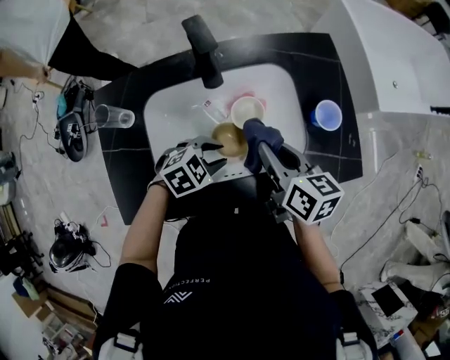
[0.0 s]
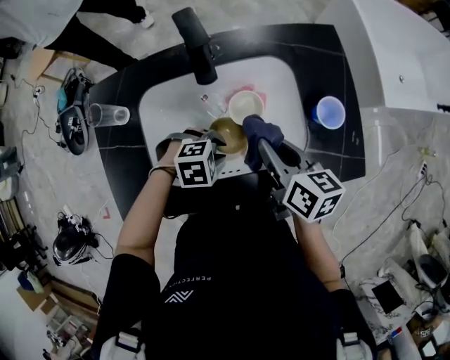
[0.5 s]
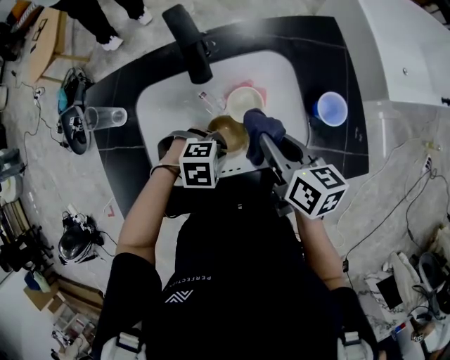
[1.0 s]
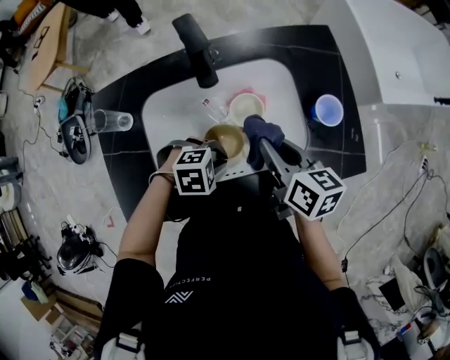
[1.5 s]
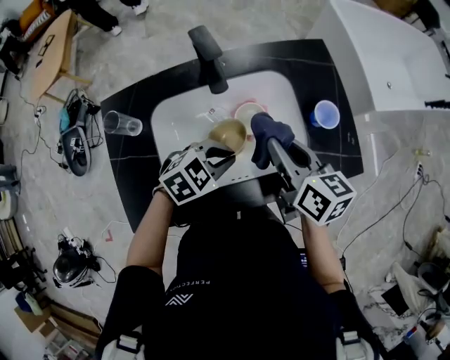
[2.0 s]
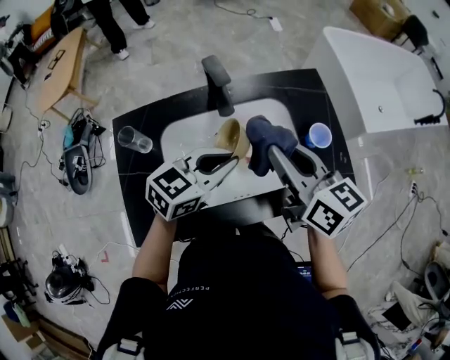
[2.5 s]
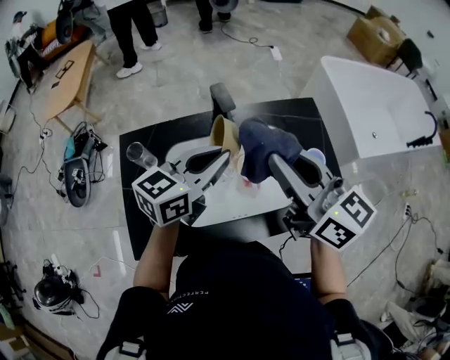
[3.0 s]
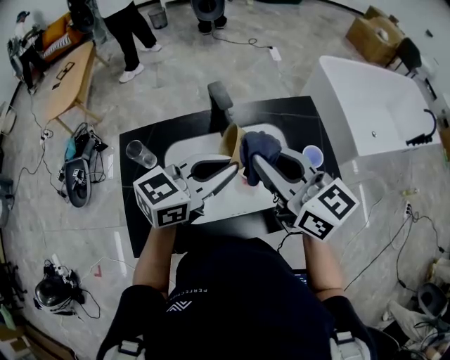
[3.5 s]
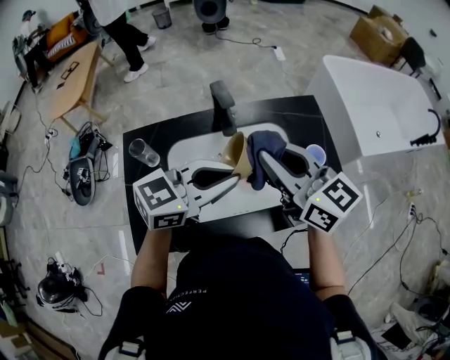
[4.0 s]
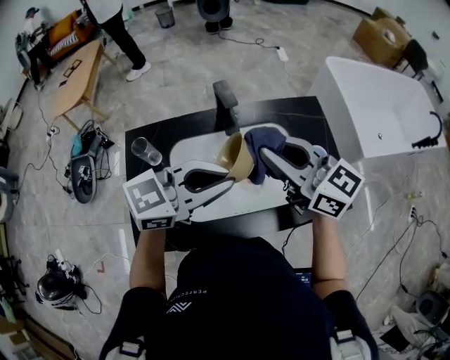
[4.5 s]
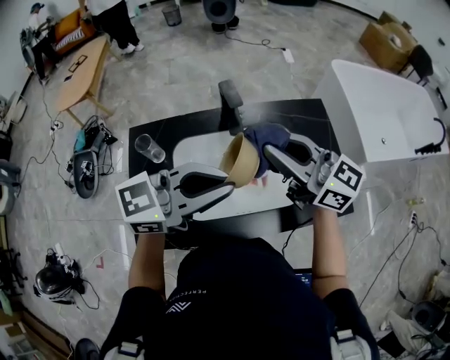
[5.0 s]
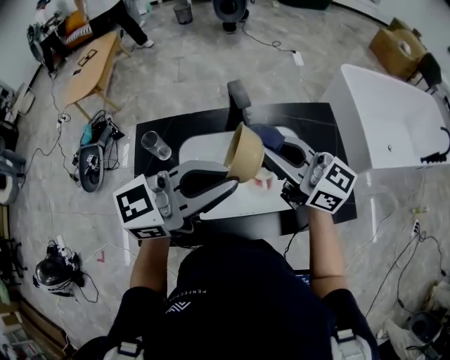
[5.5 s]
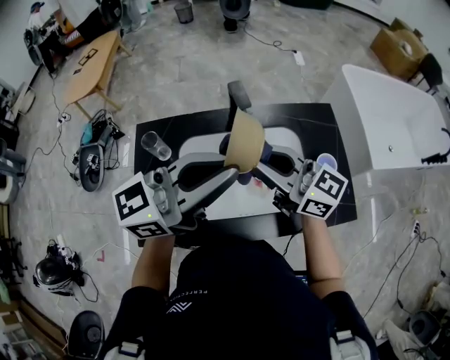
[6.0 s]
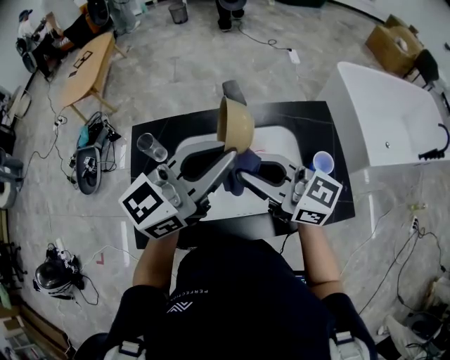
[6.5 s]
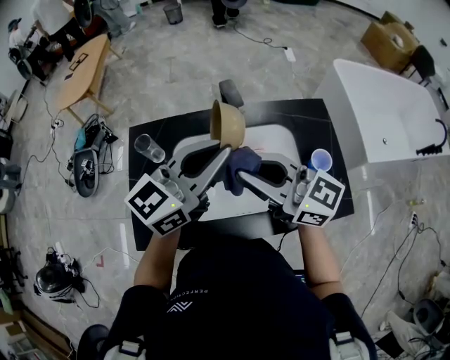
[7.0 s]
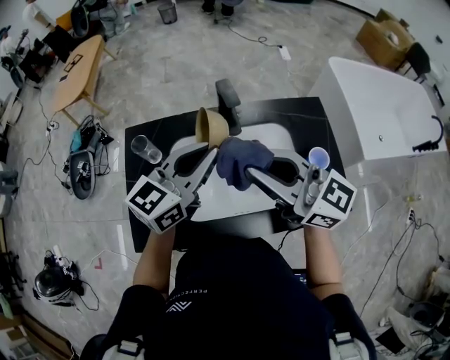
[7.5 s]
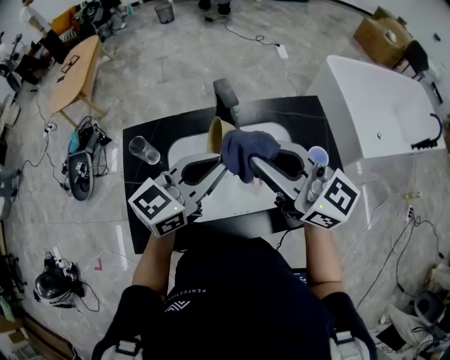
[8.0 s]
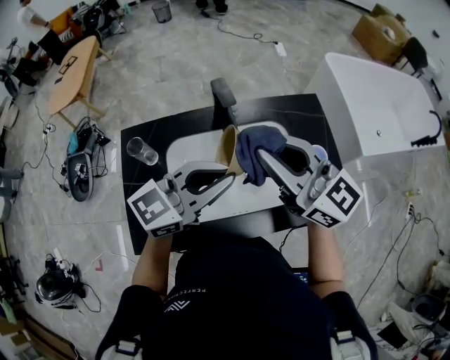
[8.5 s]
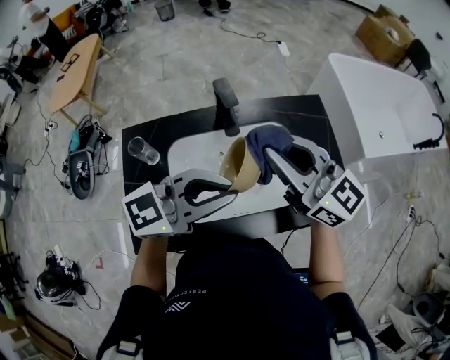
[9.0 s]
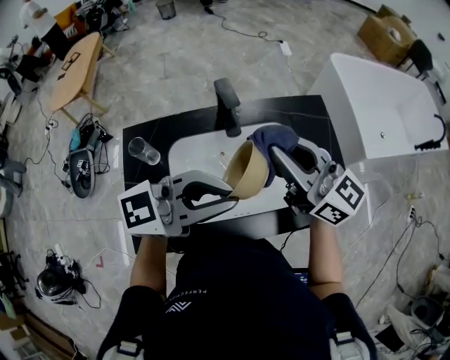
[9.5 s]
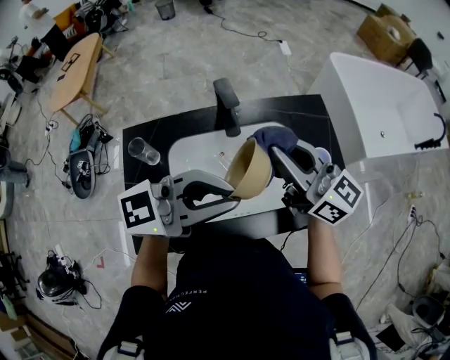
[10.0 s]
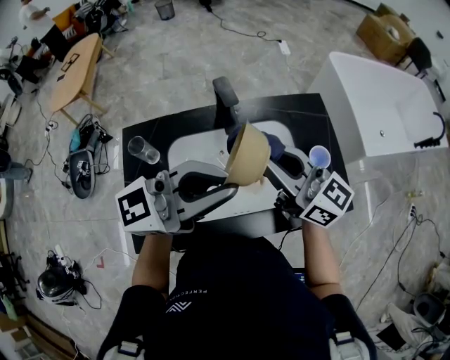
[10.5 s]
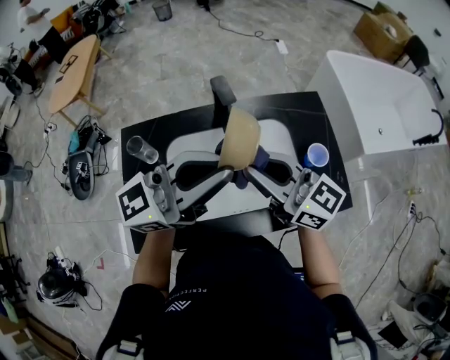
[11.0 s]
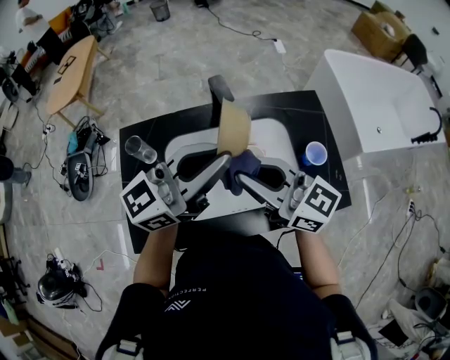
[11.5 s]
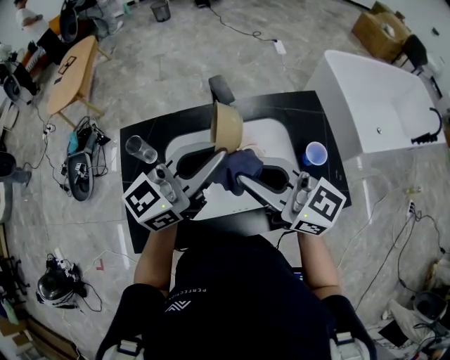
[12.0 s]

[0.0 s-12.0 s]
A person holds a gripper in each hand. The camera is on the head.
0.0 to 2.0 s: The left gripper moves upward, about 5 cm, and closes up.
2.0 to 4.0 s: Both grippers travel together upward, approximately 20 cm. The left gripper points its fingers roughly 40 degrees further upward, while the right gripper rotates roughly 30 degrees.
4.0 to 6.0 s: The right gripper moves about 5 cm, and rotates about 20 degrees. Meanwhile the left gripper moves upward, some 10 cm, and changes its angle by approximately 20 degrees.
6.0 to 8.0 s: The right gripper travels upward by approximately 5 cm. The left gripper is displaced downward by approximately 10 cm.
8.0 to 10.0 s: The right gripper ends up about 5 cm from where it was; the left gripper ends up roughly 10 cm from where it was, and turns by about 30 degrees.
10.0 to 12.0 s: The left gripper ends up approximately 10 cm from where it was, and rotates about 30 degrees. Meanwhile the right gripper changes place by about 10 cm.

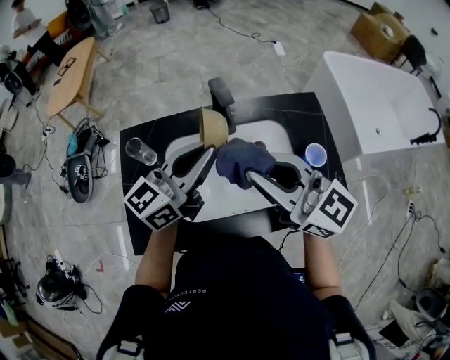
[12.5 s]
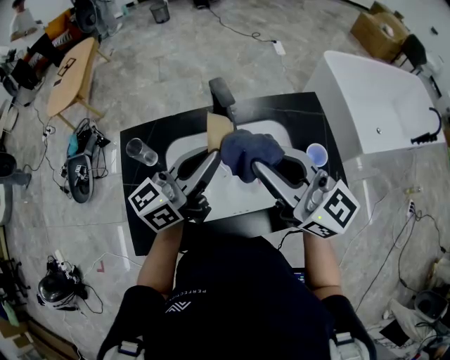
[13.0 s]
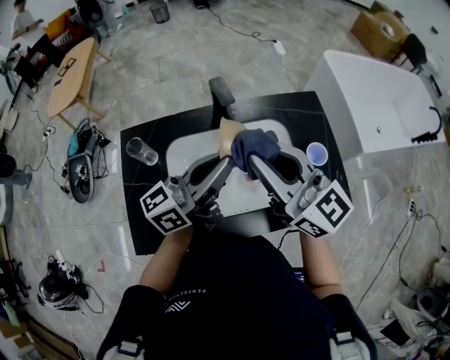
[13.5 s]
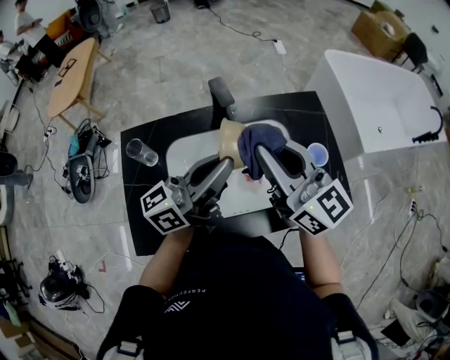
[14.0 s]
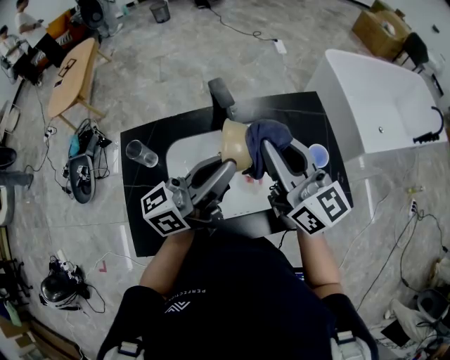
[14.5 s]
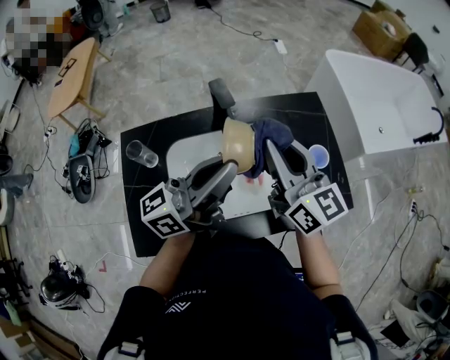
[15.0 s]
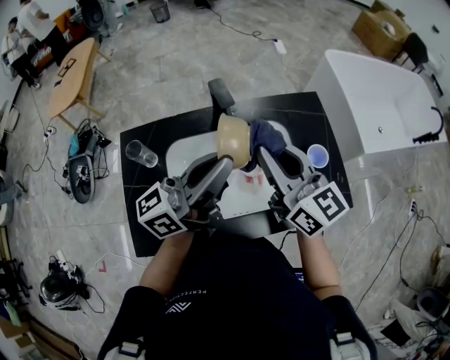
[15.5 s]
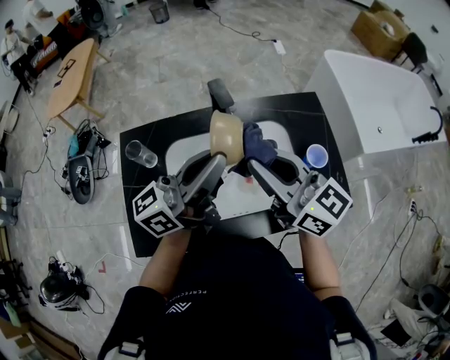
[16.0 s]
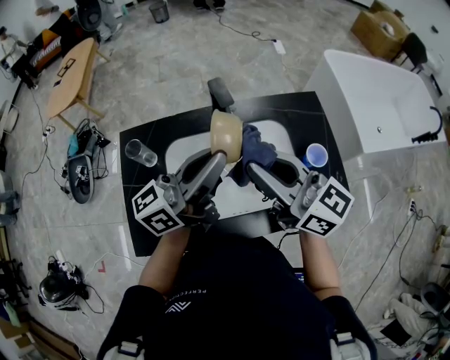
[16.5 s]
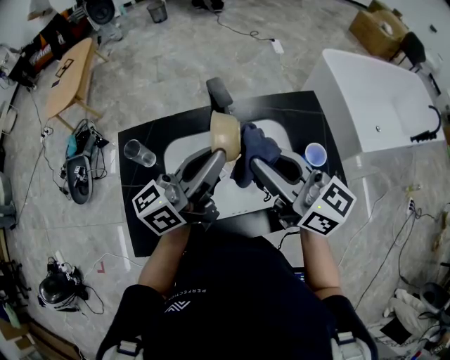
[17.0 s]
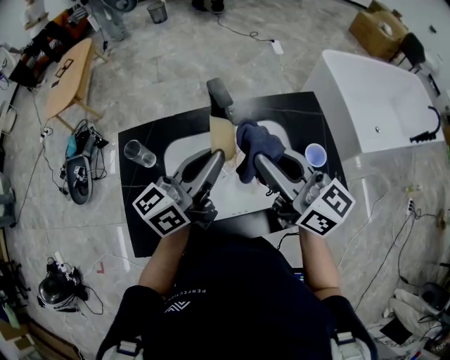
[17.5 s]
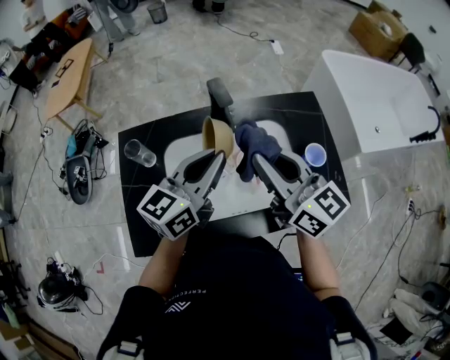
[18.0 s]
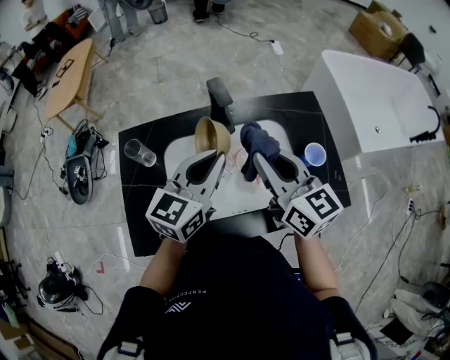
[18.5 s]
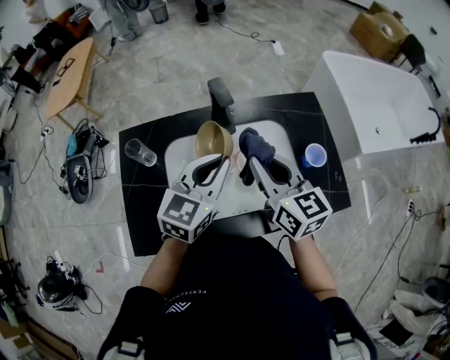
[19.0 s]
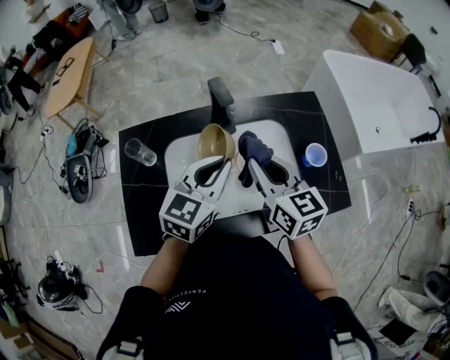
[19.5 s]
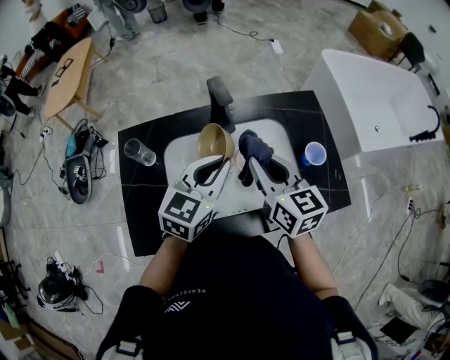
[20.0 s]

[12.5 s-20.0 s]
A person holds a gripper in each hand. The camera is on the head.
12.5 to 14.5 s: The right gripper goes about 5 cm forward, and swivels some 30 degrees. Meanwhile the left gripper changes its angle by approximately 30 degrees.
14.5 to 16.5 s: The right gripper travels backward by roughly 5 cm, and swivels roughly 20 degrees.
16.5 to 18.0 s: The left gripper goes some 5 cm downward, and turns by some 30 degrees.
18.0 to 20.0 s: The right gripper travels downward by some 10 cm, and swivels roughly 20 degrees. The left gripper shifts roughly 5 cm downward, and changes its angle by roughly 20 degrees.

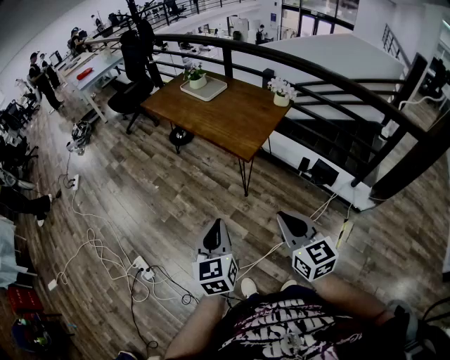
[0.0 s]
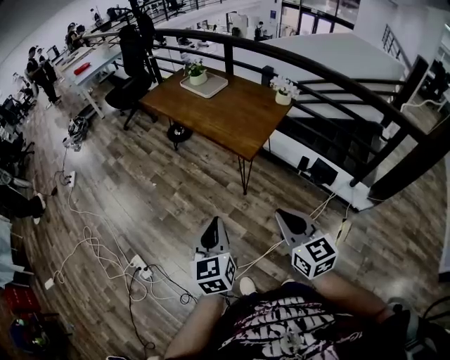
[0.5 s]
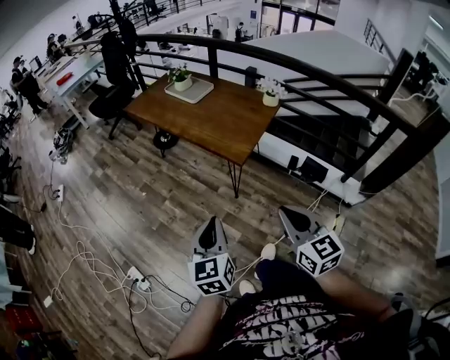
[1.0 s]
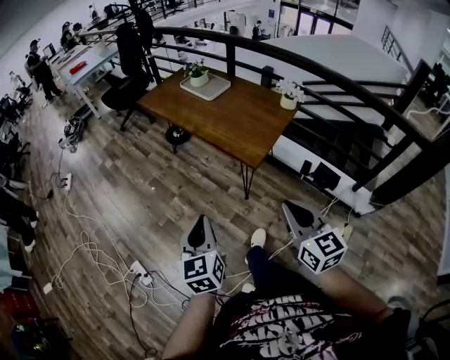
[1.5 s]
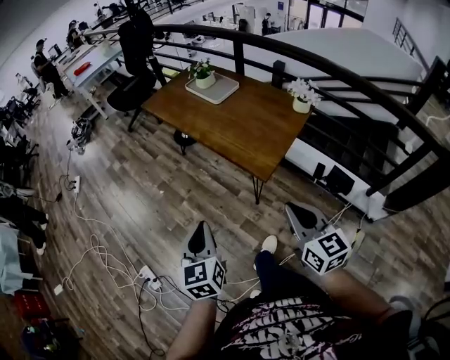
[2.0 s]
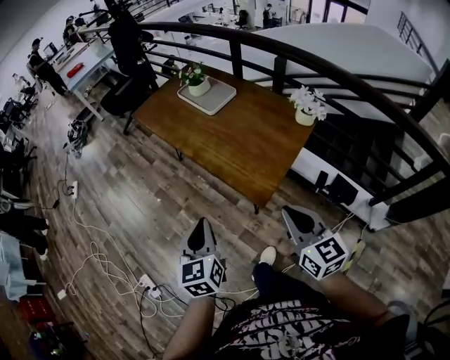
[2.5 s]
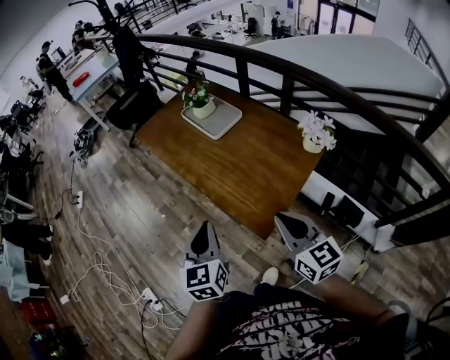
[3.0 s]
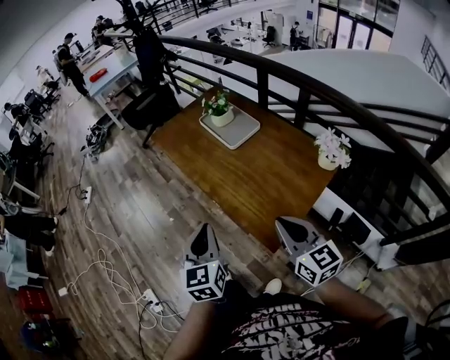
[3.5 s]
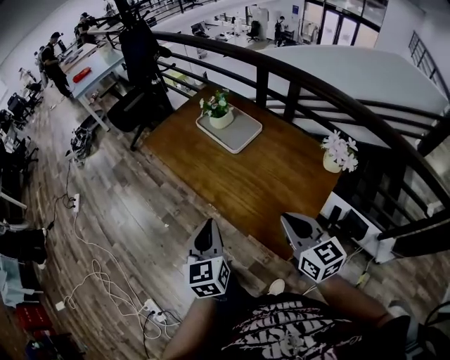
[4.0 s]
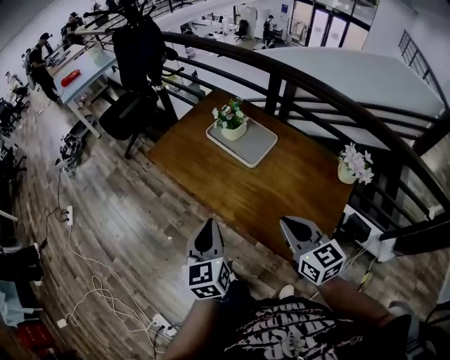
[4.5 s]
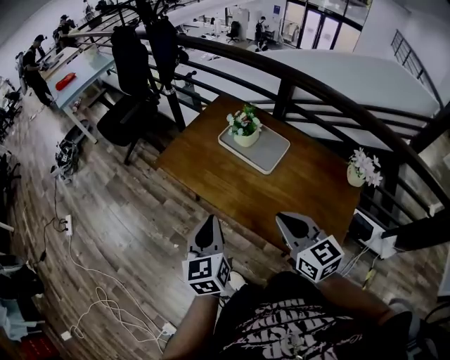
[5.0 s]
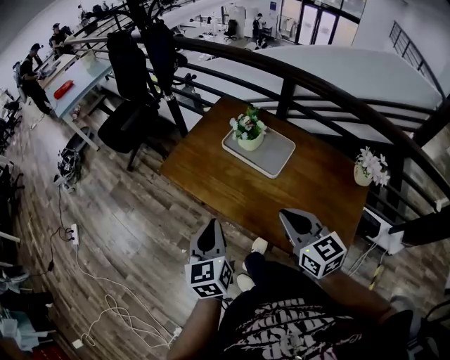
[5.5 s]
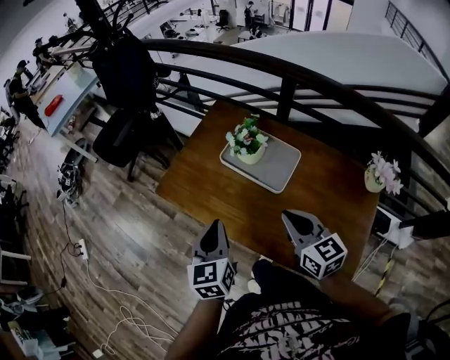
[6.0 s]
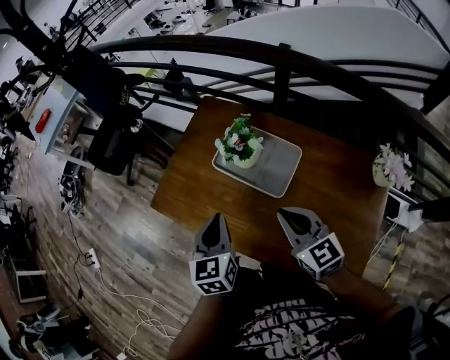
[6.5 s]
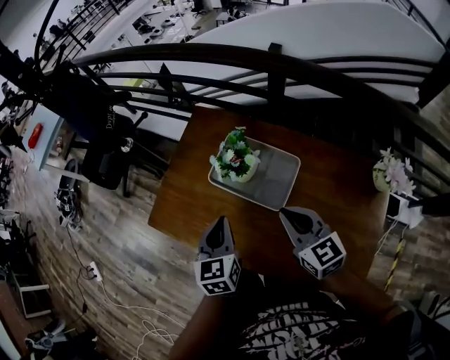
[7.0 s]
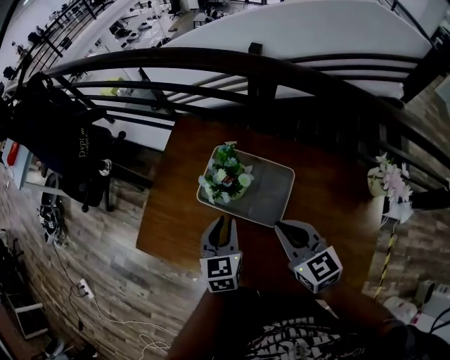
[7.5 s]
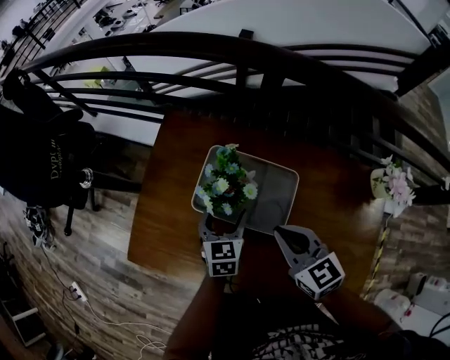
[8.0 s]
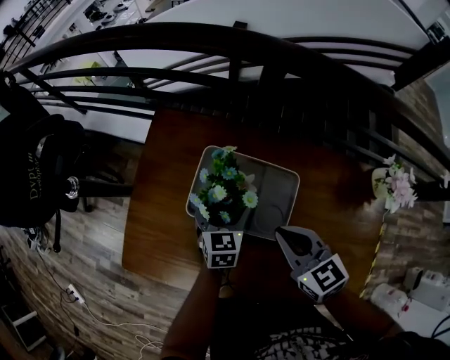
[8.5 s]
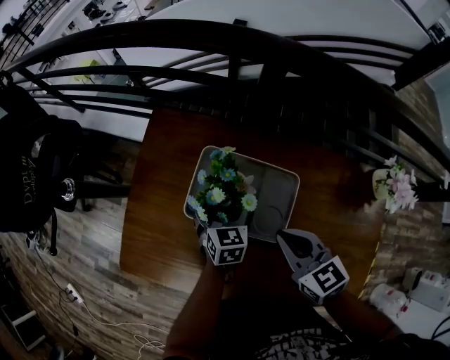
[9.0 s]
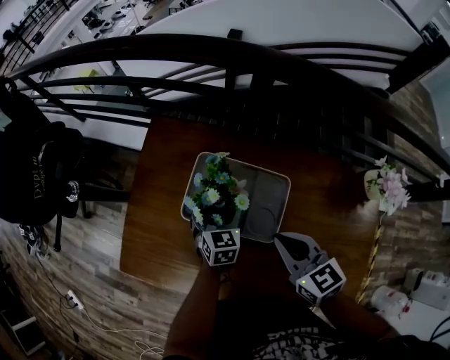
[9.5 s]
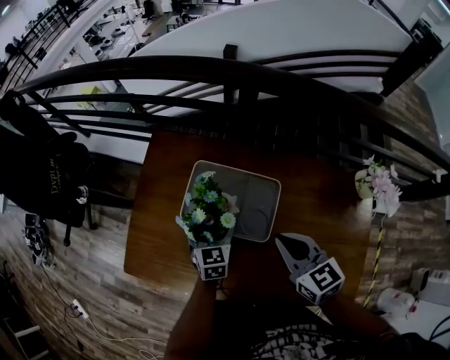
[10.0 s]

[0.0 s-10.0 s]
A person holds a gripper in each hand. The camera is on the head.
0.0 to 2.0 s: Both grippers travel together forward, roughly 20 cm.
2.0 to 4.0 s: The grippers both shift forward by about 40 cm.
4.0 to 6.0 s: The two grippers go approximately 35 cm forward and to the left.
6.0 to 8.0 s: The left gripper shifts some 35 cm forward, downward and to the right, swivels approximately 30 degrees, and opens, while the right gripper is displaced forward and downward by roughly 25 cm.
8.0 to 10.0 s: The right gripper ends up roughly 5 cm from where it was.
